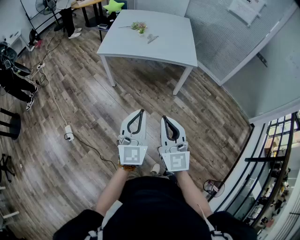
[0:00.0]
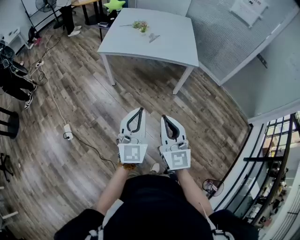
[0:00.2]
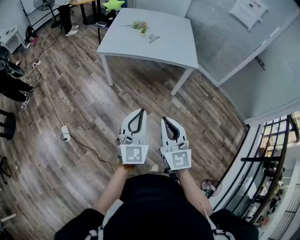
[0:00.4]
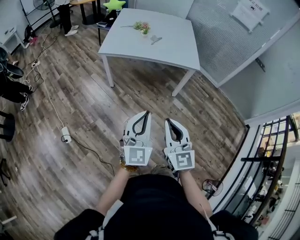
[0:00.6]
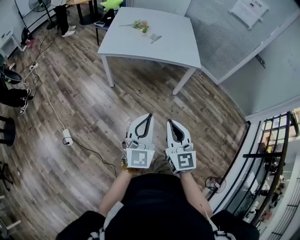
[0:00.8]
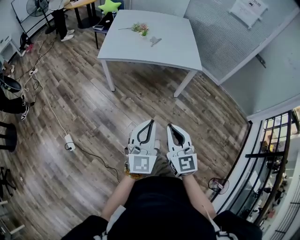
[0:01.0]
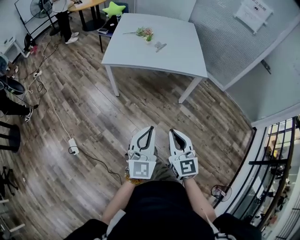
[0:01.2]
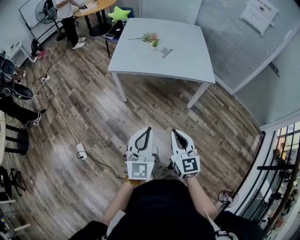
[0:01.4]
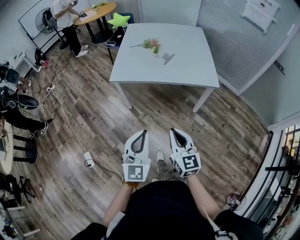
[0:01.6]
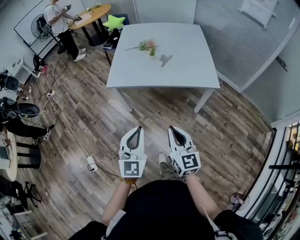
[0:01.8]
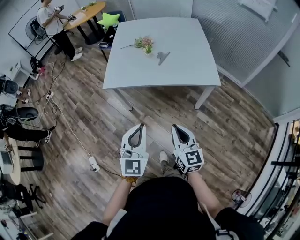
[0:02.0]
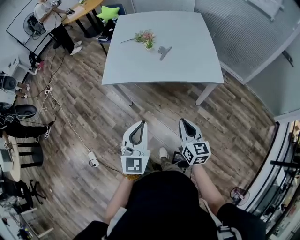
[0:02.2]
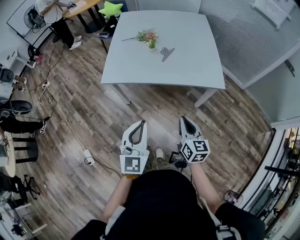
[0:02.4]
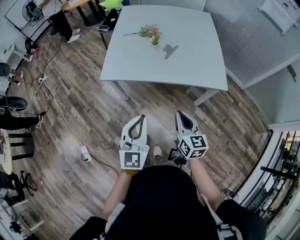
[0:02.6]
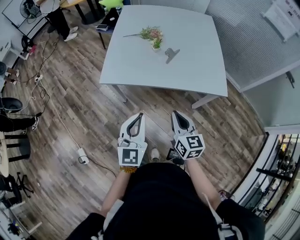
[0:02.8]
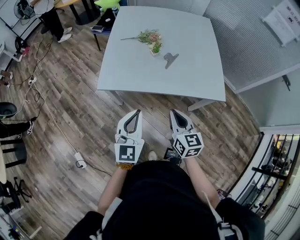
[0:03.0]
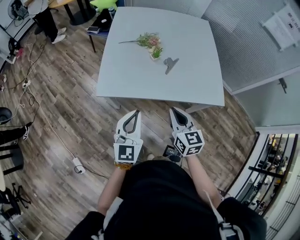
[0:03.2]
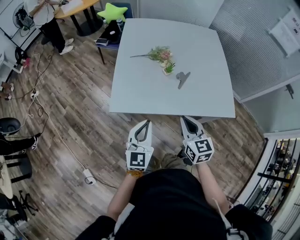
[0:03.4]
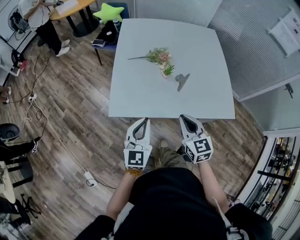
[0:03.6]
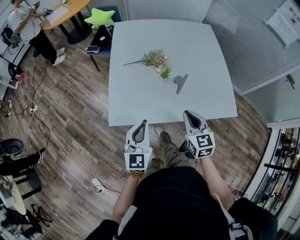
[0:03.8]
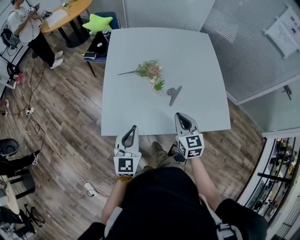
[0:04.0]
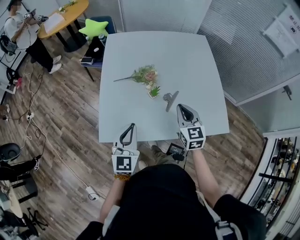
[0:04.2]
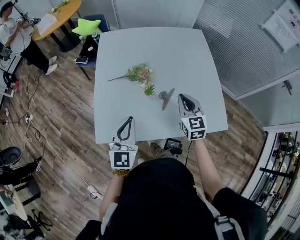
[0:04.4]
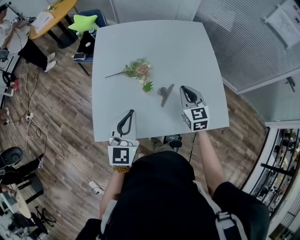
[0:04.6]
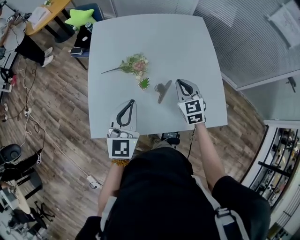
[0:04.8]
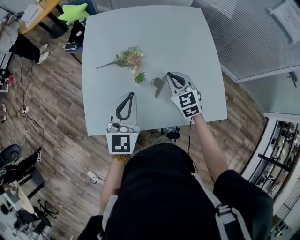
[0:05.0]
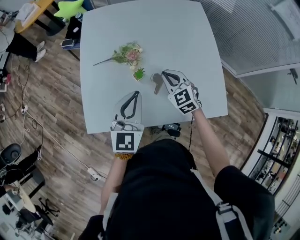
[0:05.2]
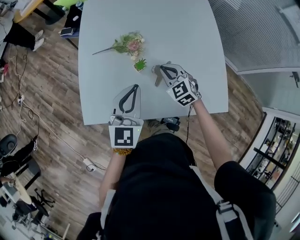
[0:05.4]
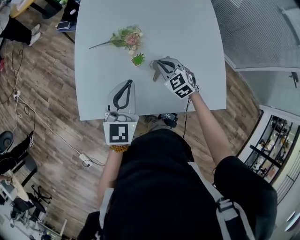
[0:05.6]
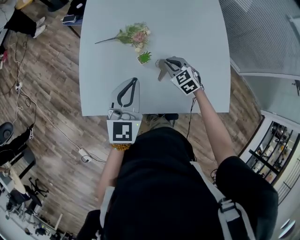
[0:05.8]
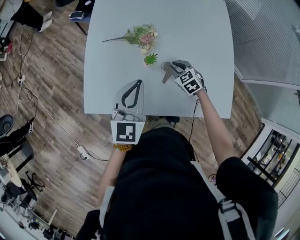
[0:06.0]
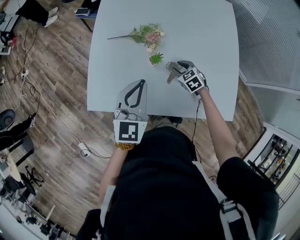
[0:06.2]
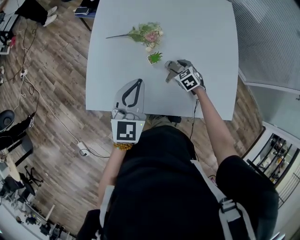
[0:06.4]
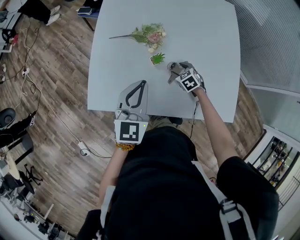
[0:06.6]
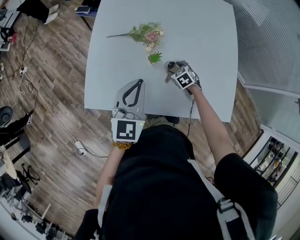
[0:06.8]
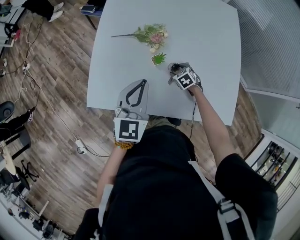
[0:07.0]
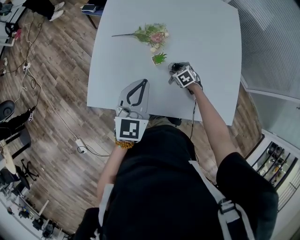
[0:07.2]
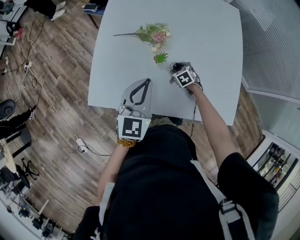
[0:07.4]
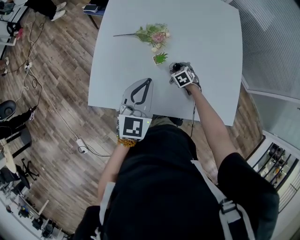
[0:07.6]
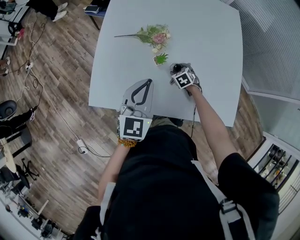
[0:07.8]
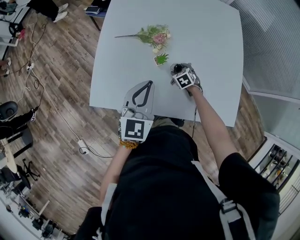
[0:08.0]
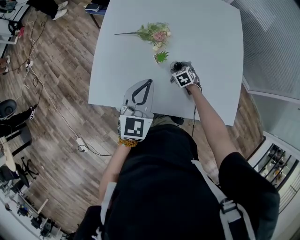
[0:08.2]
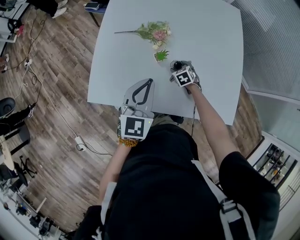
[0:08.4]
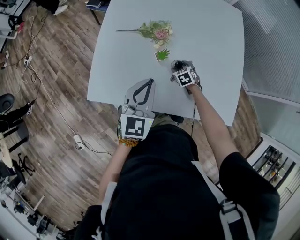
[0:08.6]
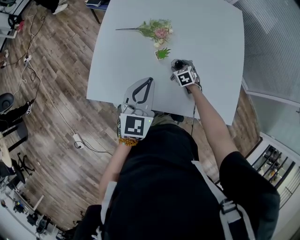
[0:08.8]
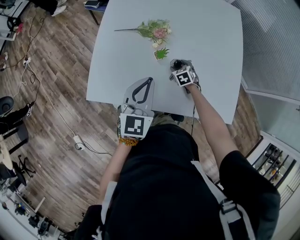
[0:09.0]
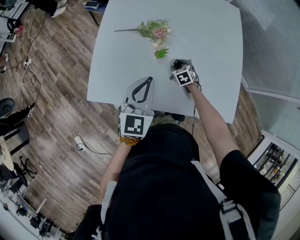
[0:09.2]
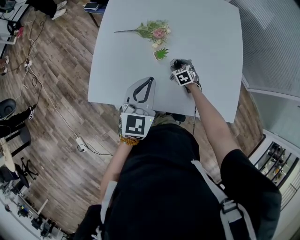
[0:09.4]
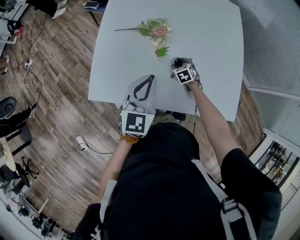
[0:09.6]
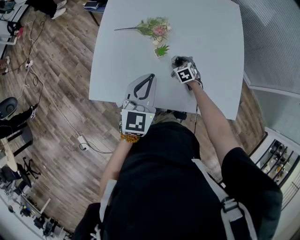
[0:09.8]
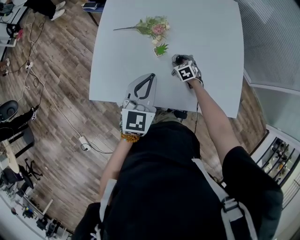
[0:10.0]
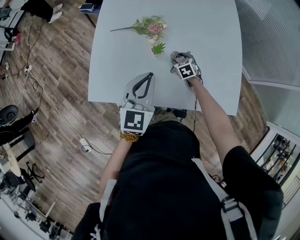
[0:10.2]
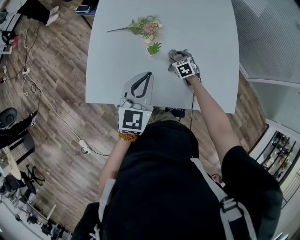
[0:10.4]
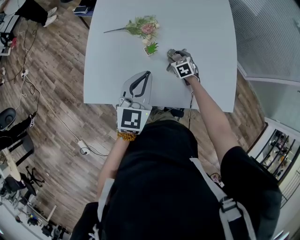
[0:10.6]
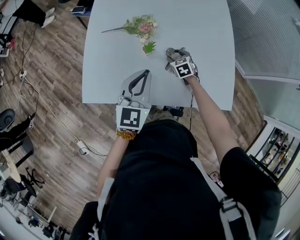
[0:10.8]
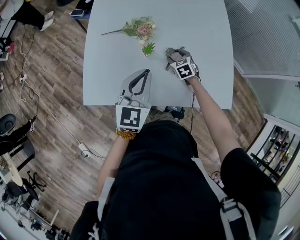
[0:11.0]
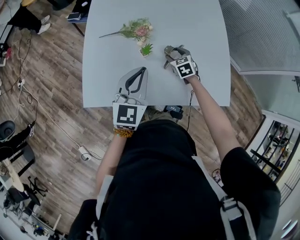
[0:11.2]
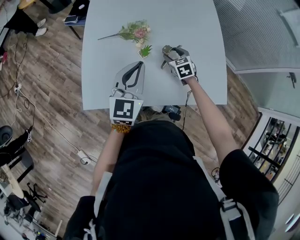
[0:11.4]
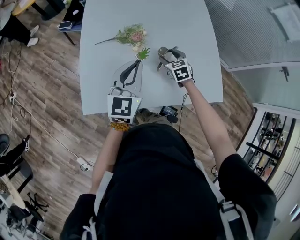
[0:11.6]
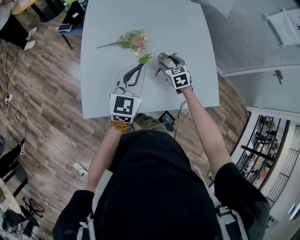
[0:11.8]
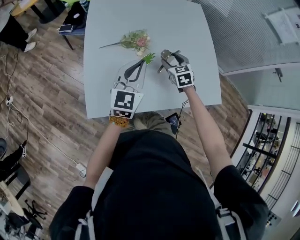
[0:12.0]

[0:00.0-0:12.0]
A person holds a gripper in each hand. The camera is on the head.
0:00.0 to 0:01.6: The right gripper is displaced forward by about 25 cm, while the left gripper travels forward and to the left by roughly 25 cm.
0:01.6 to 0:03.0: The grippers both shift forward by some 30 cm.
0:03.0 to 0:04.4: Both grippers move forward, approximately 35 cm.
0:04.4 to 0:06.0: The right gripper is displaced downward and forward by roughly 25 cm, and changes its angle by roughly 40 degrees. Meanwhile the left gripper travels forward and to the right by some 10 cm.
0:06.0 to 0:07.6: The right gripper shifts some 10 cm downward, and opens its fingers.
0:07.6 to 0:10.4: There are only small adjustments of the grippers.
0:10.4 to 0:12.0: The left gripper travels to the left and upward by about 10 cm; the right gripper travels upward by roughly 20 cm.

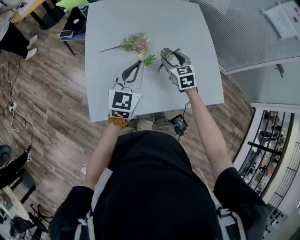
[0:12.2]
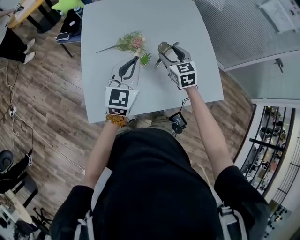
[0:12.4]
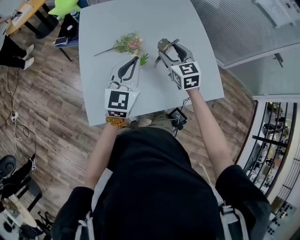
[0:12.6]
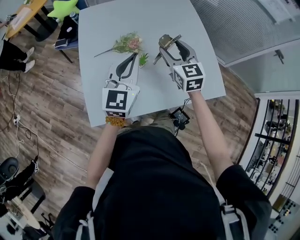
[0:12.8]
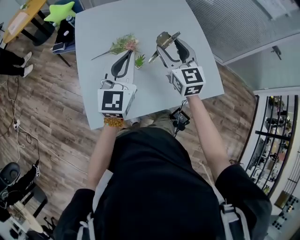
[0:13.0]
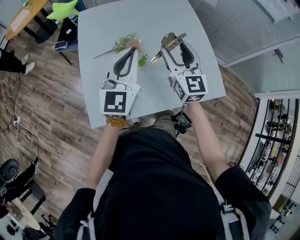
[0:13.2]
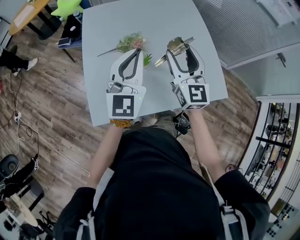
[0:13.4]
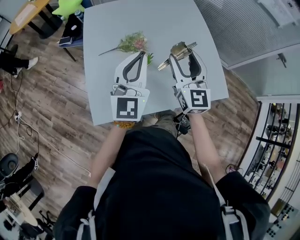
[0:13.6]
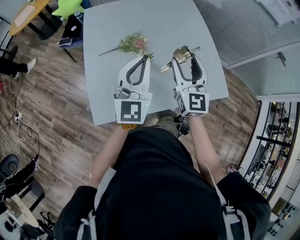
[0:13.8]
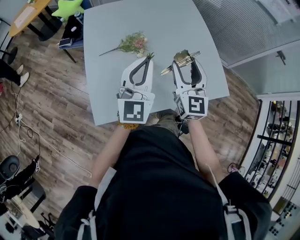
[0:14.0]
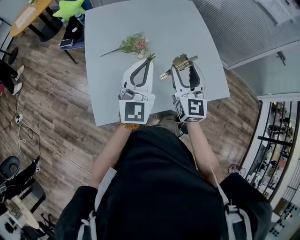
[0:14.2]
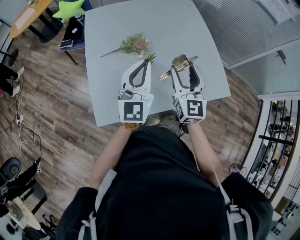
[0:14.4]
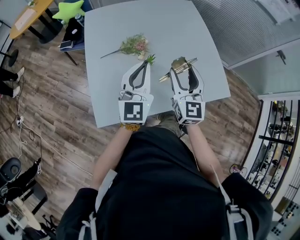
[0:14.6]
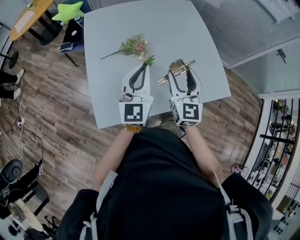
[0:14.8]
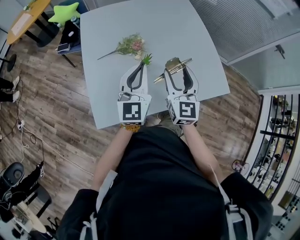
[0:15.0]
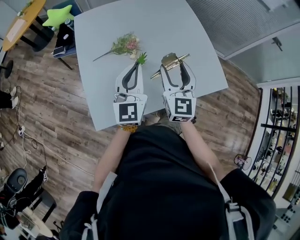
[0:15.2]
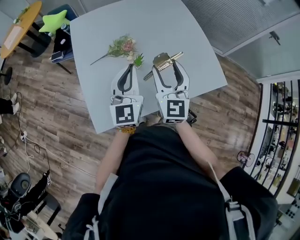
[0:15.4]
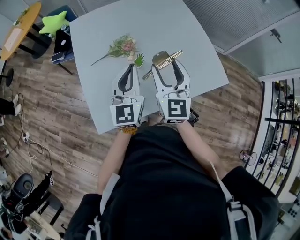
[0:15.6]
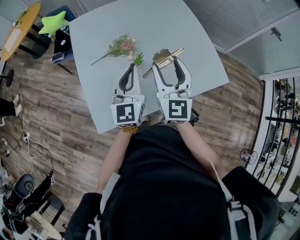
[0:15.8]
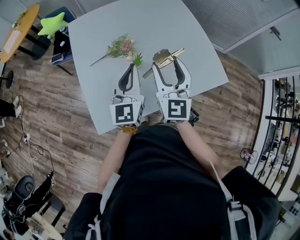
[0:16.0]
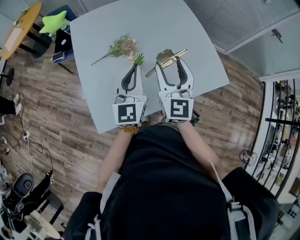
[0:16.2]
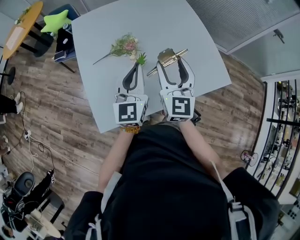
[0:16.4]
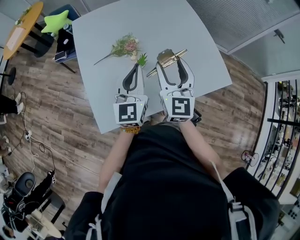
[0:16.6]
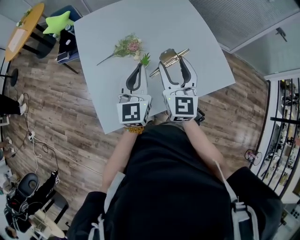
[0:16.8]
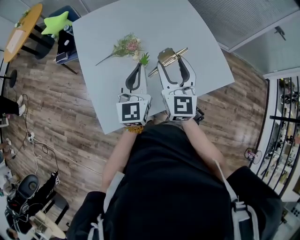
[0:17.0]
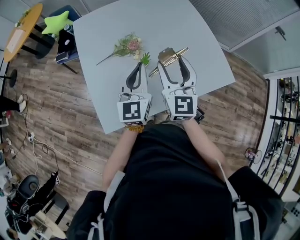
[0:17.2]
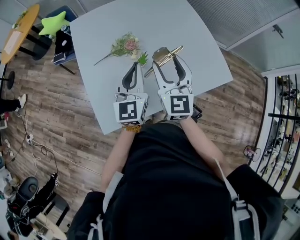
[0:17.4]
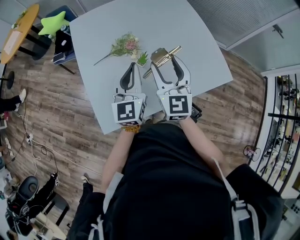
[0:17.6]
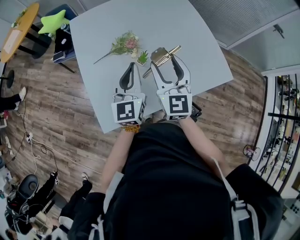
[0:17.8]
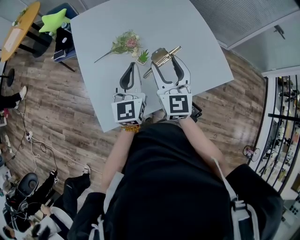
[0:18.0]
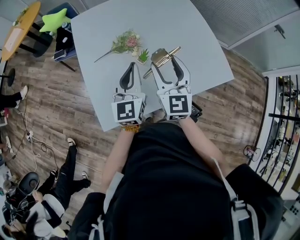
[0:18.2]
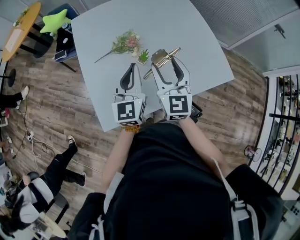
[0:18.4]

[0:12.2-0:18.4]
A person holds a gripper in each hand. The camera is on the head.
0:12.2 to 0:13.8: The left gripper is displaced upward by some 5 cm. Meanwhile the right gripper shifts roughly 20 cm upward and backward, and angles its fingers upward, by about 40 degrees.
0:13.8 to 0:15.4: The left gripper moves downward, about 5 cm.
0:15.4 to 0:18.4: The grippers make only small movements.

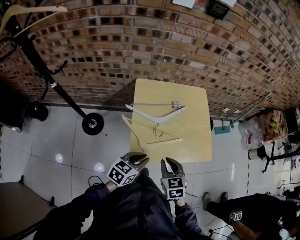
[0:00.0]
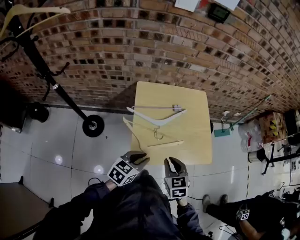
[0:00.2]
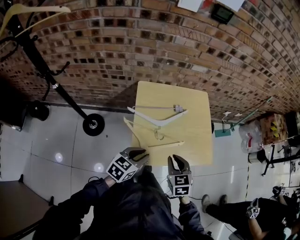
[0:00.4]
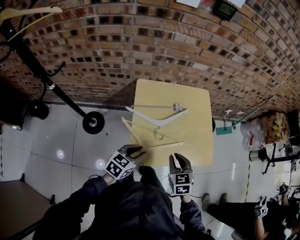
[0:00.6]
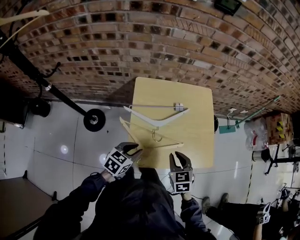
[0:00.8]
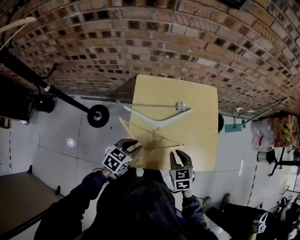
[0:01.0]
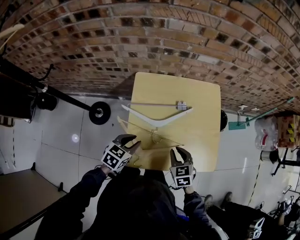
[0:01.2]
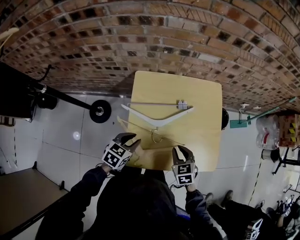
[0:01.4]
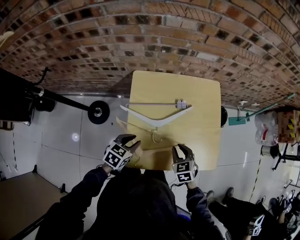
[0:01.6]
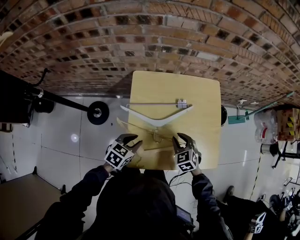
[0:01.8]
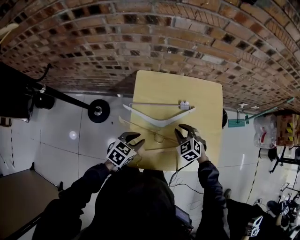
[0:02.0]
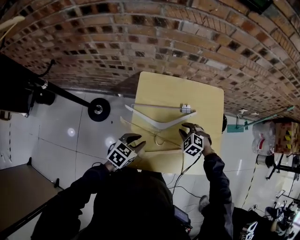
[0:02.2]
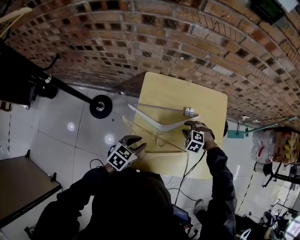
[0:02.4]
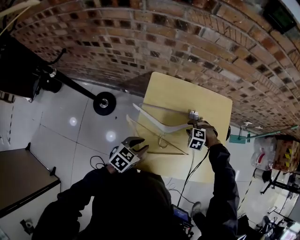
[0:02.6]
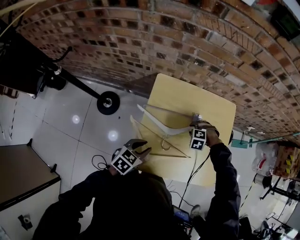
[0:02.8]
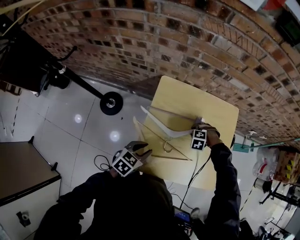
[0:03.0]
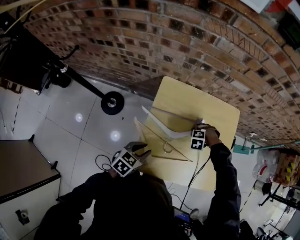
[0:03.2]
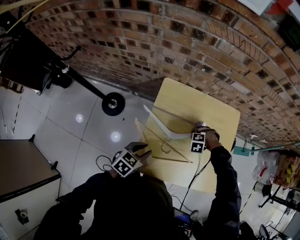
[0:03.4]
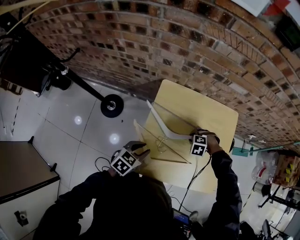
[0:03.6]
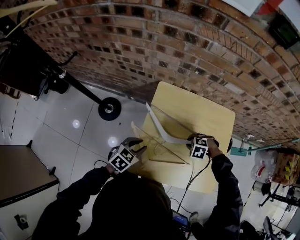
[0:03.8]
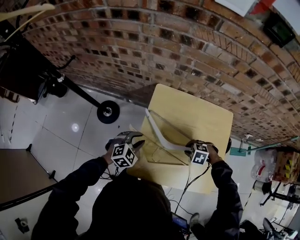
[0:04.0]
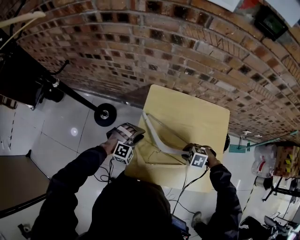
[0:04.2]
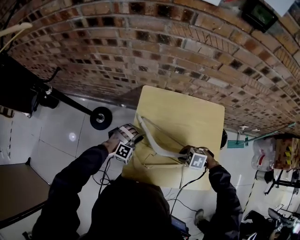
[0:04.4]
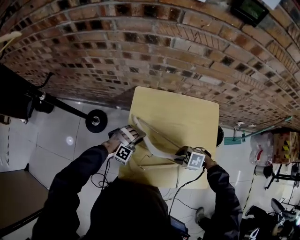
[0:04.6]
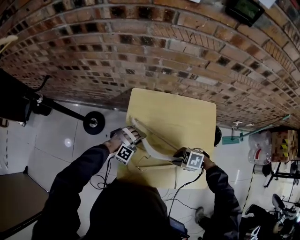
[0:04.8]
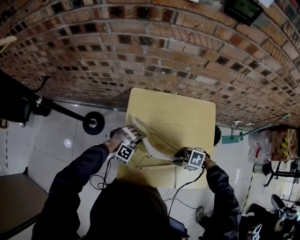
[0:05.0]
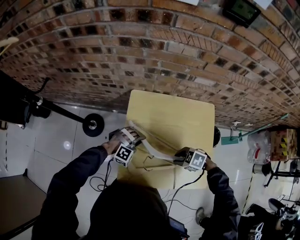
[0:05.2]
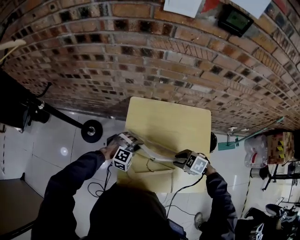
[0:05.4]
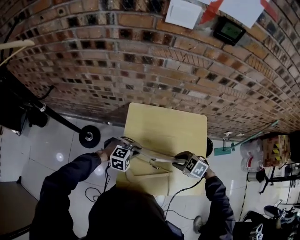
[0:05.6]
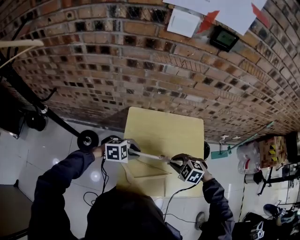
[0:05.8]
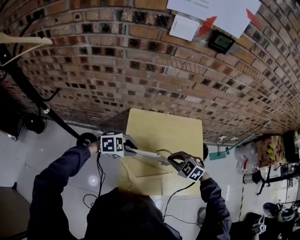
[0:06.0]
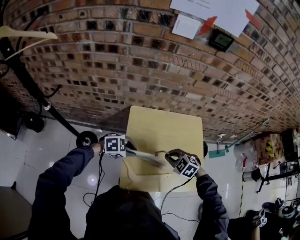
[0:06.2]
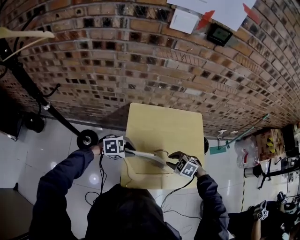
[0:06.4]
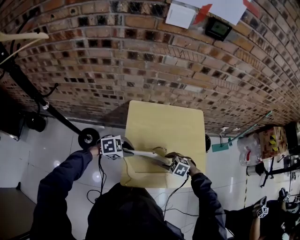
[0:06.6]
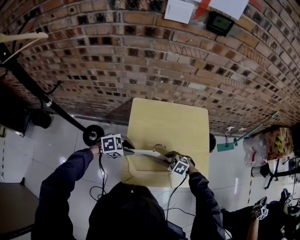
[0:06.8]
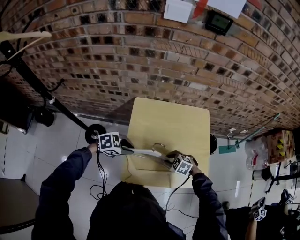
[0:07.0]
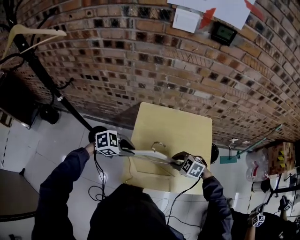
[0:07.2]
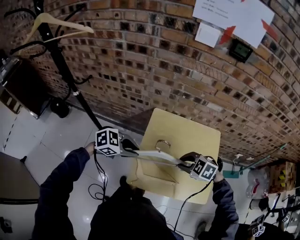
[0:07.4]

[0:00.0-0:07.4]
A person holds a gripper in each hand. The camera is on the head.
0:00.0 to 0:01.4: The left gripper goes approximately 15 cm forward, downward and to the left. The right gripper shifts about 20 cm forward and downward.
0:01.4 to 0:03.0: The right gripper shifts by about 20 cm, and twists about 70 degrees counterclockwise, seen from behind.
0:03.0 to 0:04.4: The right gripper moves approximately 15 cm, and turns by roughly 30 degrees; the left gripper changes place by roughly 15 cm, and twists some 90 degrees clockwise, seen from behind.
0:04.4 to 0:06.0: The two grippers go approximately 15 cm upward. The right gripper turns by about 30 degrees, and closes up, while the left gripper rotates roughly 60 degrees.
0:06.0 to 0:07.4: The left gripper moves about 10 cm, and rotates approximately 20 degrees. Meanwhile the right gripper goes downward and returns, roughly 15 cm each way, and opens.
